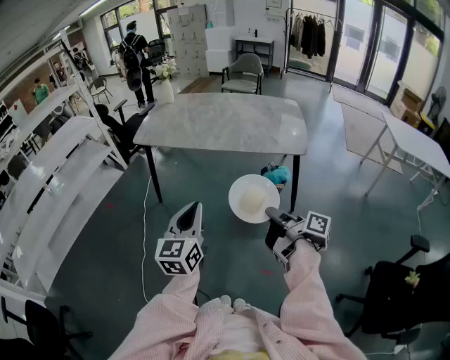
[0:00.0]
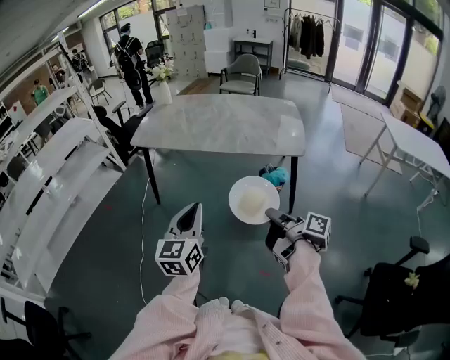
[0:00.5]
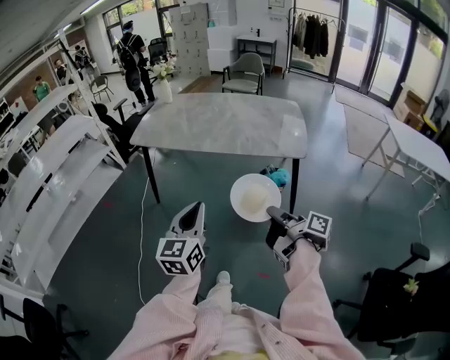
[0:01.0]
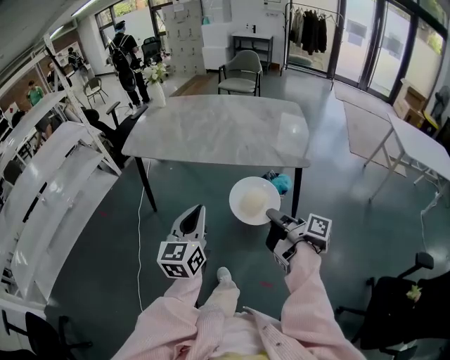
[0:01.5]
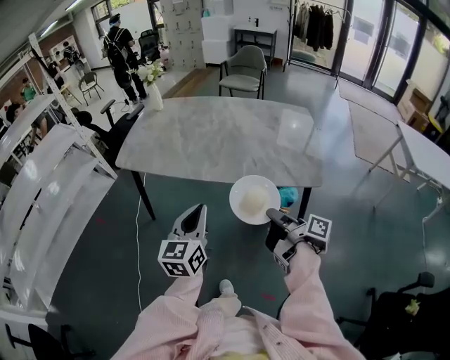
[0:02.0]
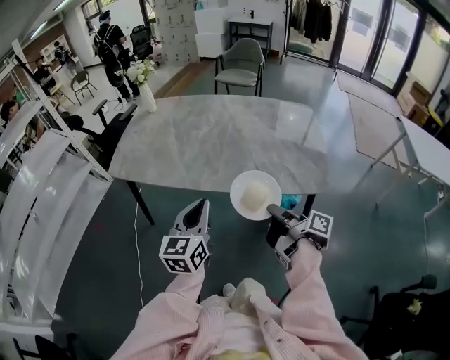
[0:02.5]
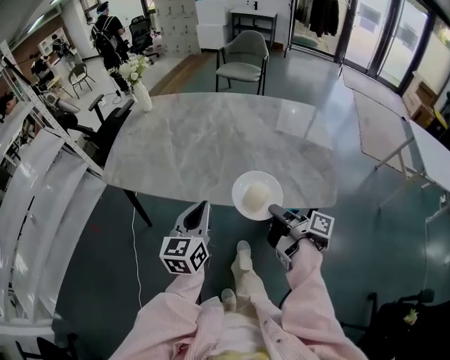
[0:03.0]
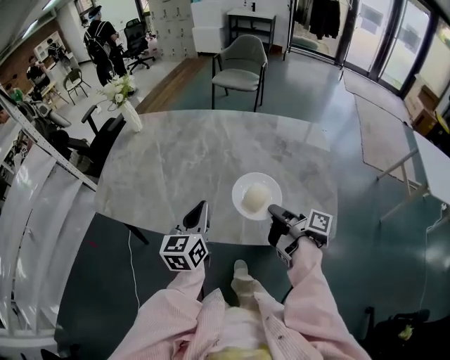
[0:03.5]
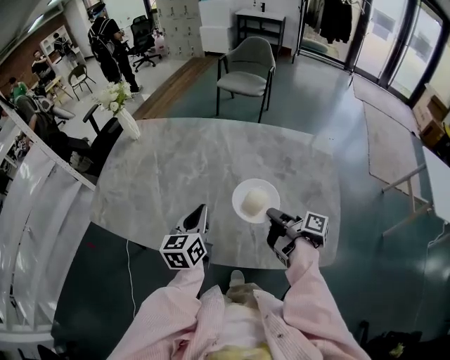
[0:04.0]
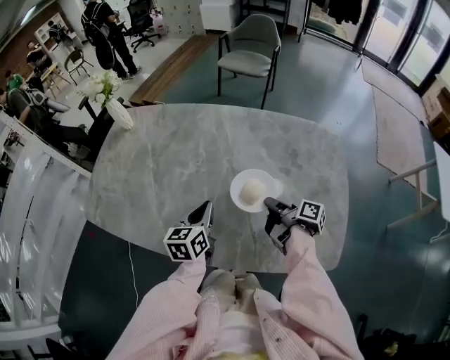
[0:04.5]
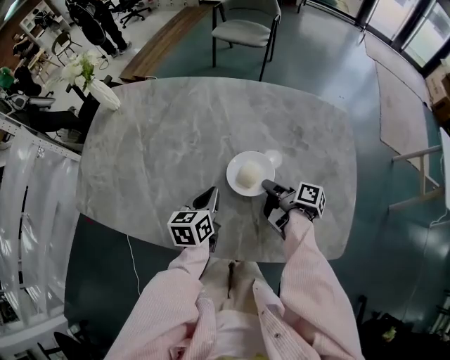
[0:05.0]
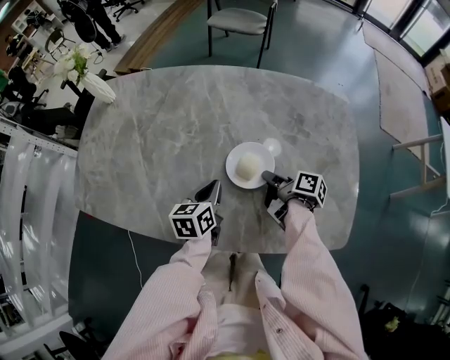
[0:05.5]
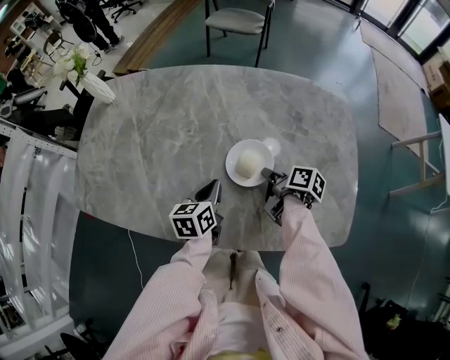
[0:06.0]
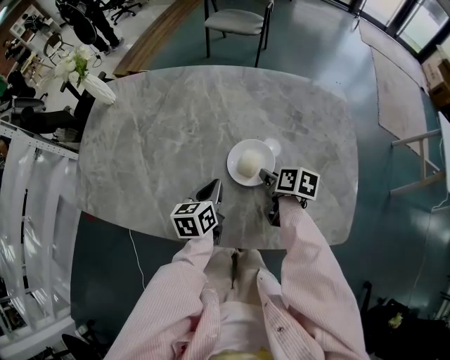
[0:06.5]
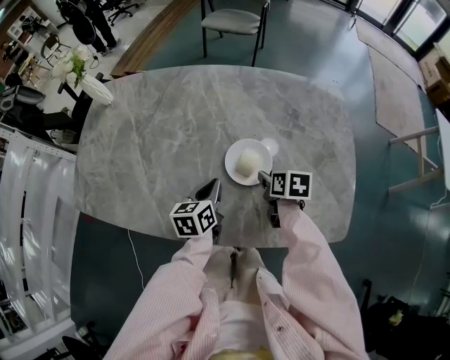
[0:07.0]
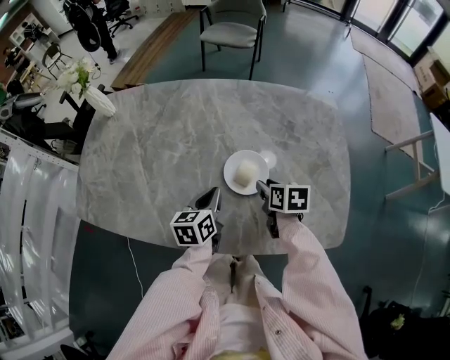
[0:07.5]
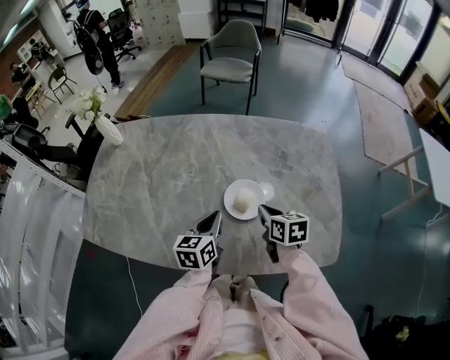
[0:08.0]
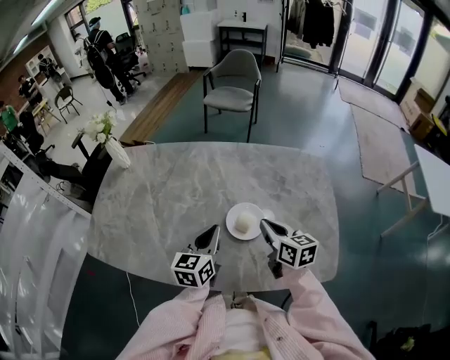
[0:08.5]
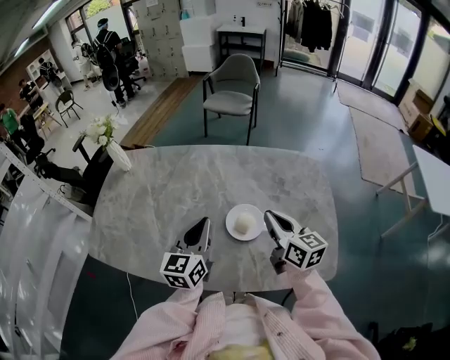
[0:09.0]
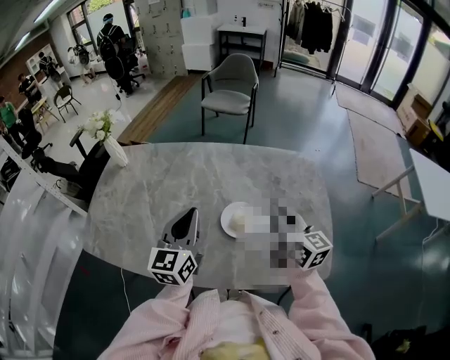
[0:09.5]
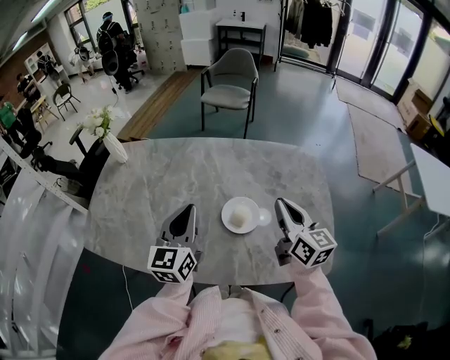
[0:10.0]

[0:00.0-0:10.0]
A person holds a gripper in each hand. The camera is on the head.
0:00.0 to 0:02.0: The left gripper shifts by approximately 30 cm.
0:02.0 to 0:04.0: The left gripper moves approximately 40 cm.
0:04.0 to 0:06.0: The left gripper is displaced downward by some 15 cm, and changes its angle by roughly 20 degrees.
0:06.0 to 0:08.0: The left gripper travels upward by some 5 cm.
0:08.0 to 0:10.0: The left gripper is displaced upward by roughly 15 cm, and rotates approximately 30 degrees.

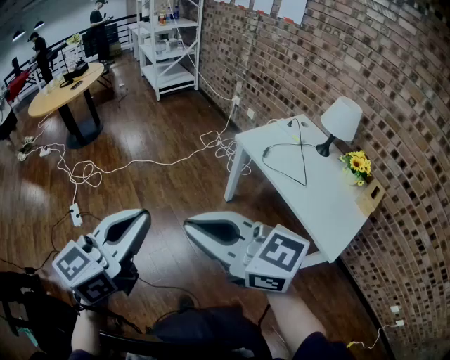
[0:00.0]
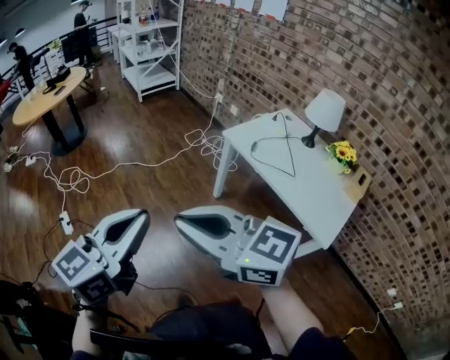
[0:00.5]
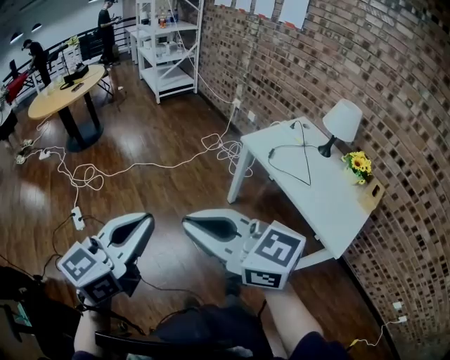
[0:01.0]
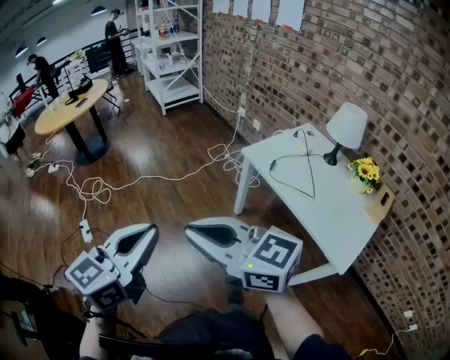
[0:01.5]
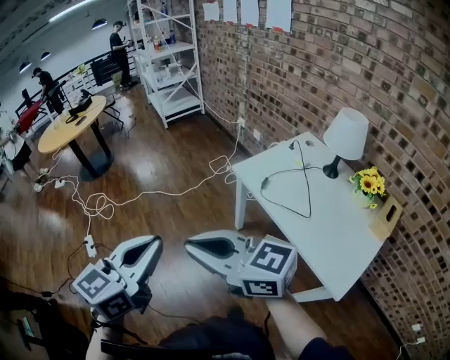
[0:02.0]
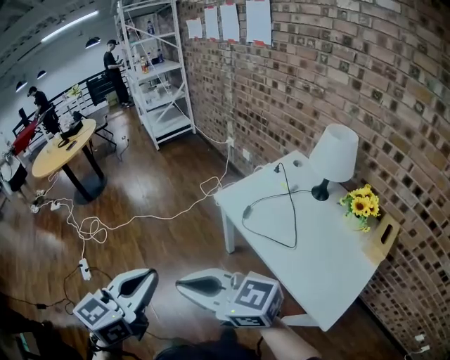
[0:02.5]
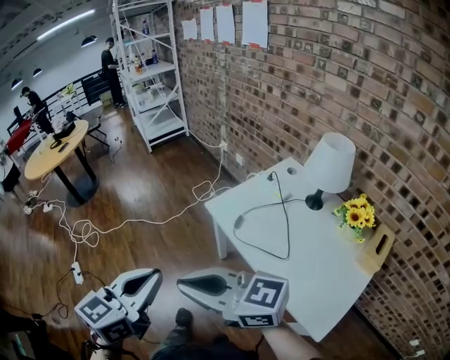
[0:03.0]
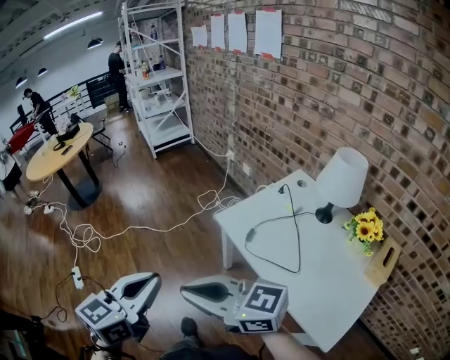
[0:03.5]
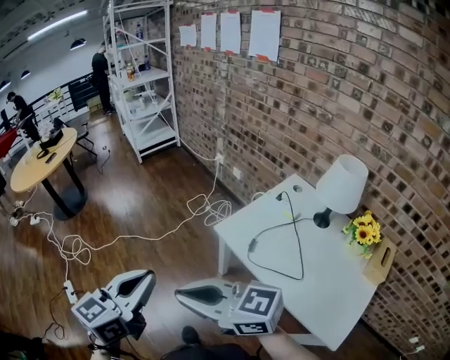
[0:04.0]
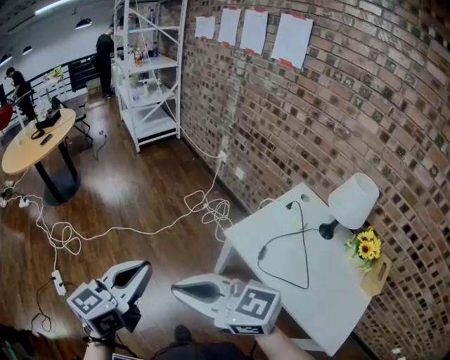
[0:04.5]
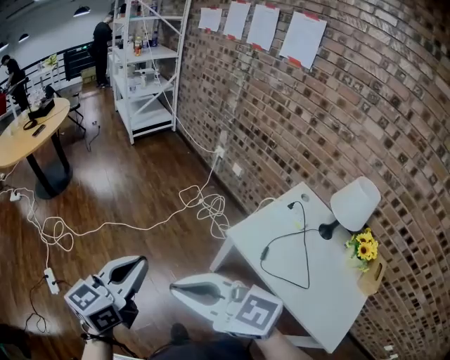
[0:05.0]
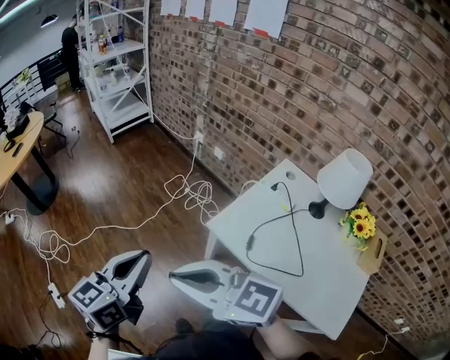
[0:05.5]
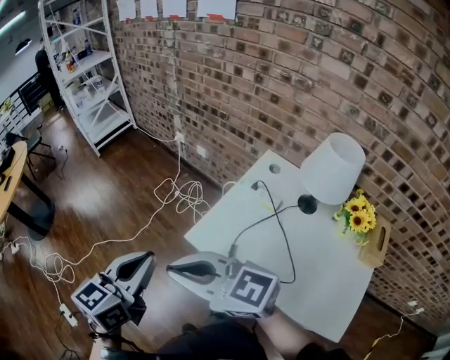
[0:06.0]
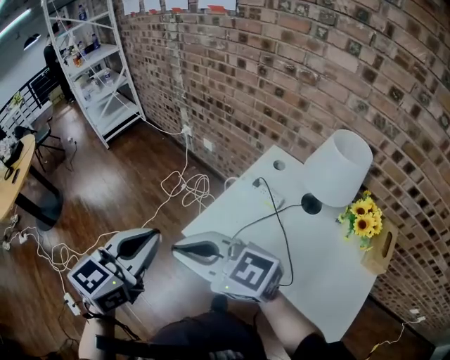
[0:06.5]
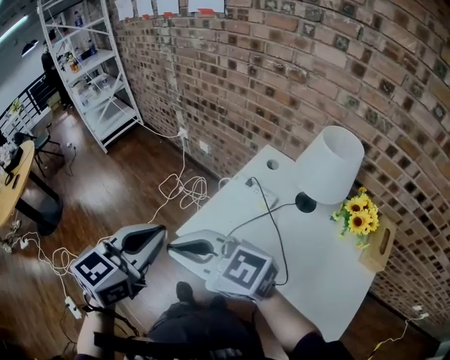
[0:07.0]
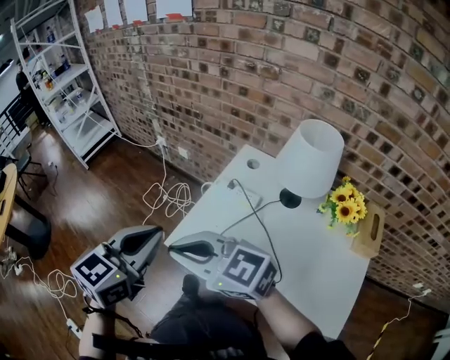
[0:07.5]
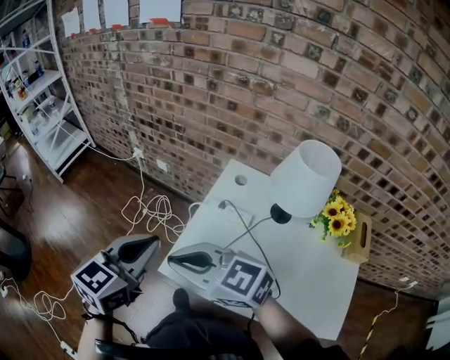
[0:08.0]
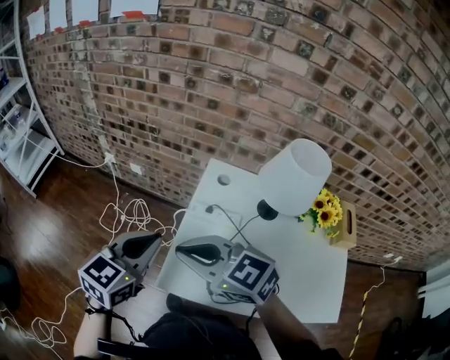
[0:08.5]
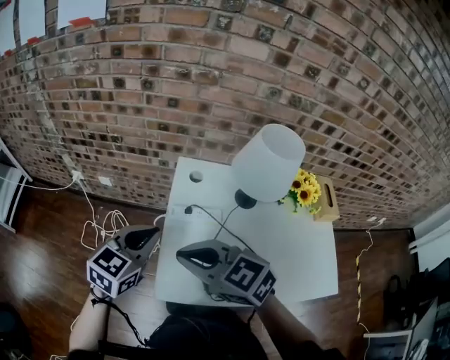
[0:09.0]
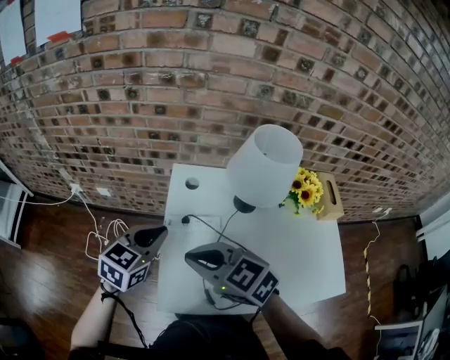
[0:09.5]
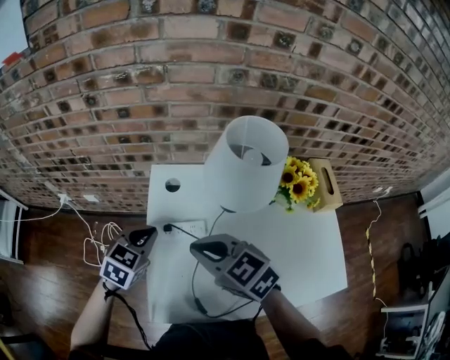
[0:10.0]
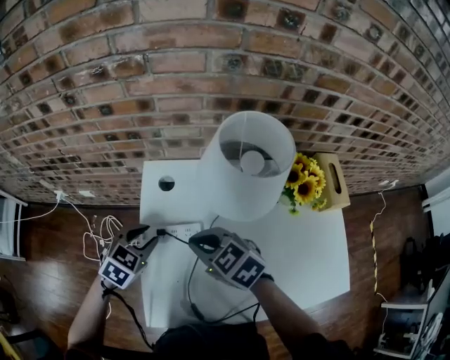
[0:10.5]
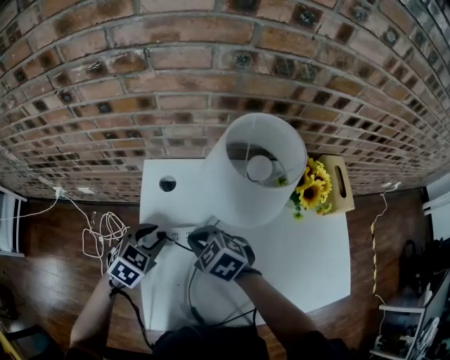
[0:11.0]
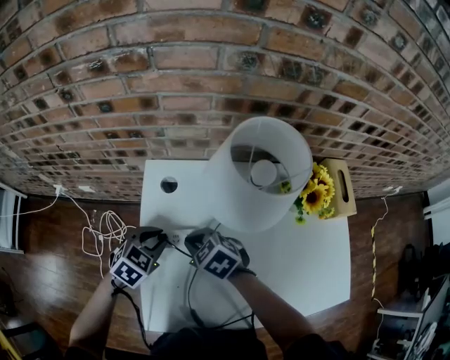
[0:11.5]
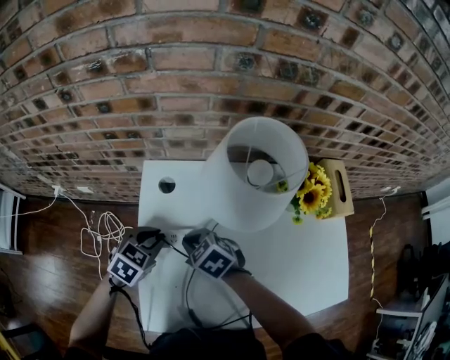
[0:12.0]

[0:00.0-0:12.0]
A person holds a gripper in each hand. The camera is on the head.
0:00.0 to 0:02.0: Both grippers move to the right and forward, about 15 cm.
0:02.0 to 0:04.0: Both grippers travel together forward, some 15 cm.
0:04.0 to 0:06.0: Both grippers travel together forward and to the right, about 20 cm.
0:06.0 to 0:08.0: The left gripper goes roughly 20 cm to the right and forward, and turns by approximately 20 degrees. The right gripper is displaced forward and to the right by roughly 15 cm.
0:08.0 to 0:10.0: The right gripper shifts by roughly 25 cm, and swivels roughly 40 degrees. Meanwhile the left gripper shifts by roughly 30 cm, and swivels about 40 degrees.
0:10.0 to 0:12.0: The left gripper shifts some 10 cm downward, and opens up, while the right gripper heads downward, covering roughly 20 cm, and rotates about 20 degrees.

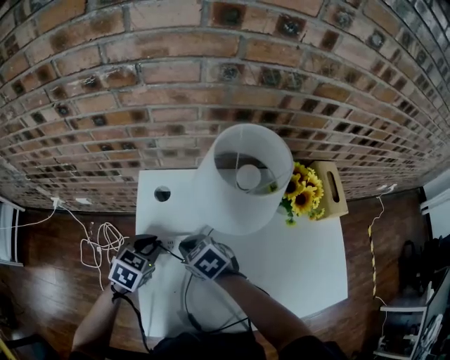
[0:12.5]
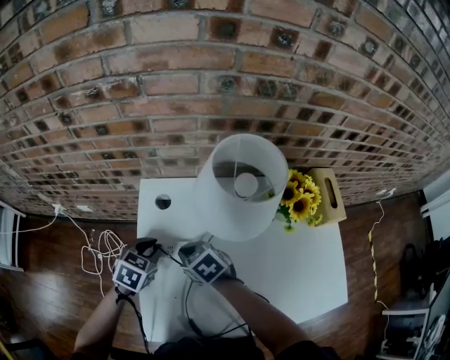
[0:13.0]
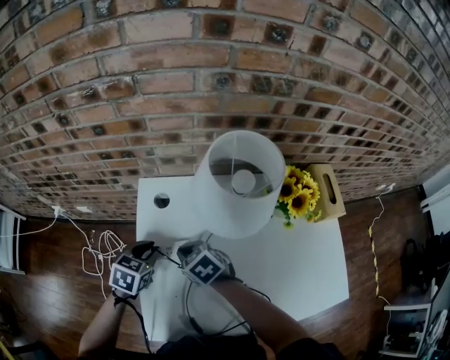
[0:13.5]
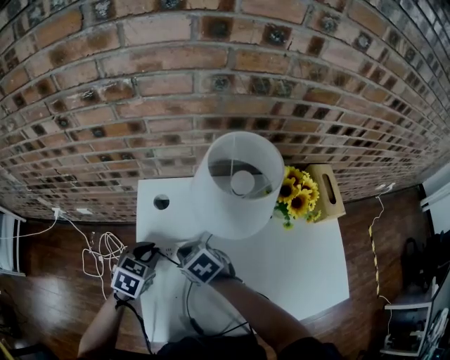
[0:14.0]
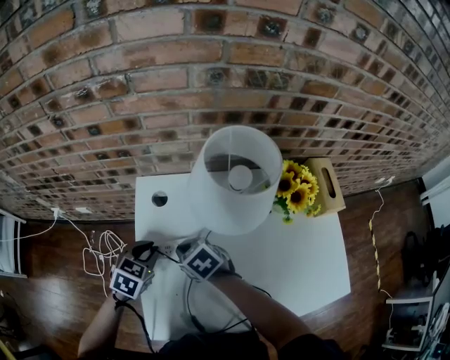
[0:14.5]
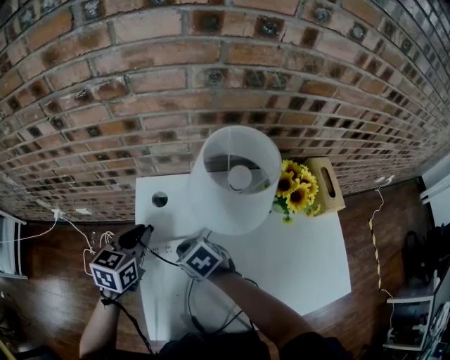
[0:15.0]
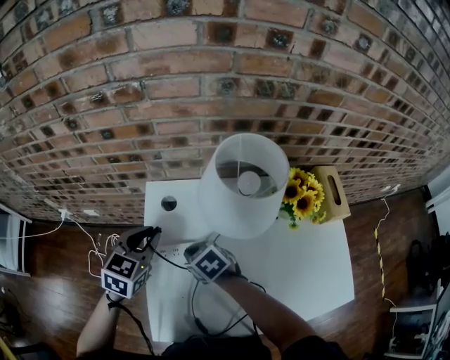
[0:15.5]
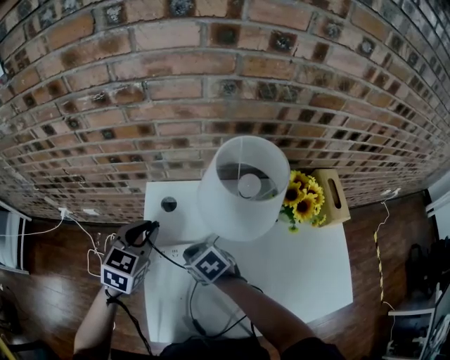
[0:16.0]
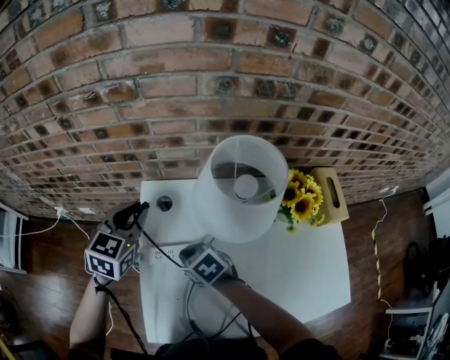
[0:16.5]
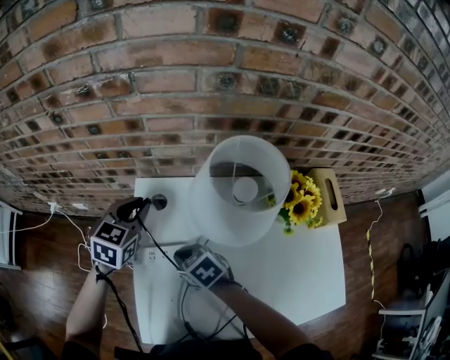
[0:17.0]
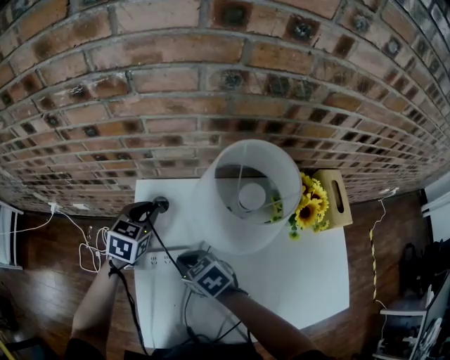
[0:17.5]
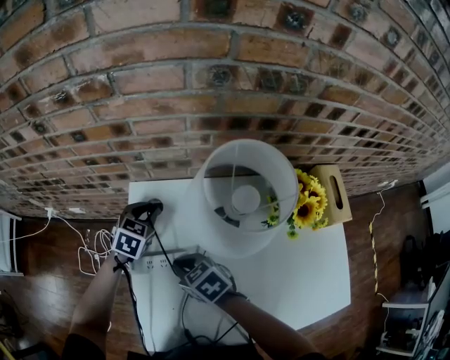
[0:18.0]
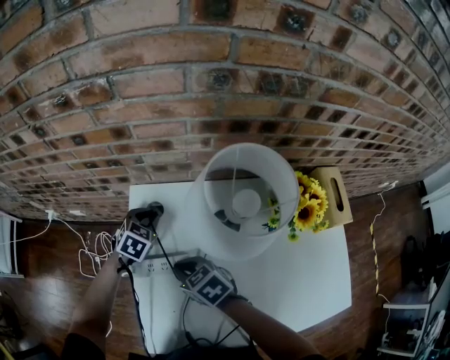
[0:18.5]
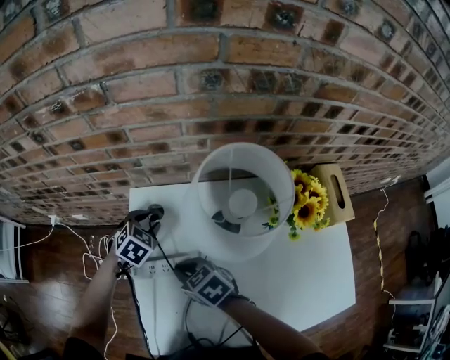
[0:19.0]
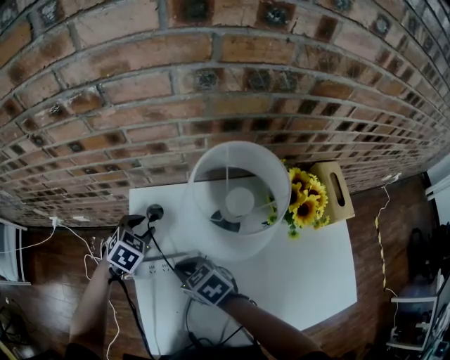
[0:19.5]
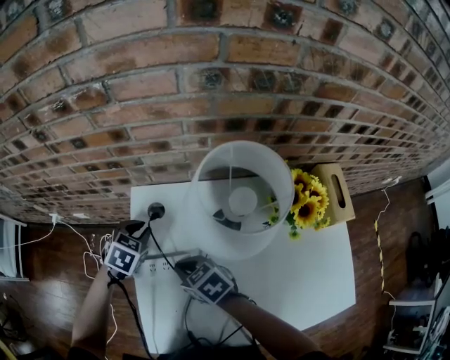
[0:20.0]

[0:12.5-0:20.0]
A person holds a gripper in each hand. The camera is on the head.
0:12.5 to 0:14.5: The grippers make only small movements.
0:14.5 to 0:16.5: The left gripper travels upward and forward by some 15 cm, and swivels roughly 20 degrees.
0:16.5 to 0:18.0: The left gripper goes about 15 cm downward.
0:18.0 to 0:20.0: The left gripper changes place by roughly 5 cm.
